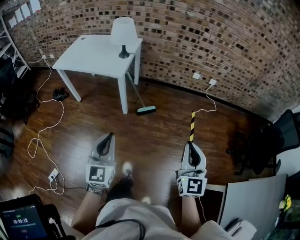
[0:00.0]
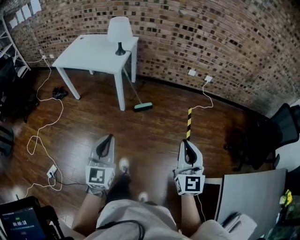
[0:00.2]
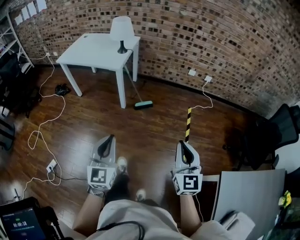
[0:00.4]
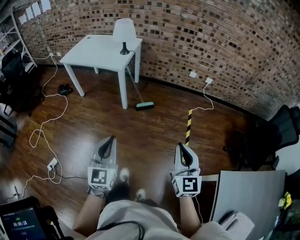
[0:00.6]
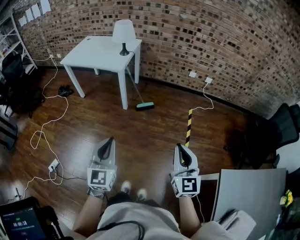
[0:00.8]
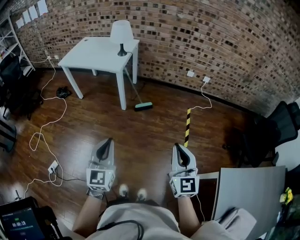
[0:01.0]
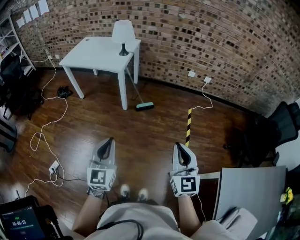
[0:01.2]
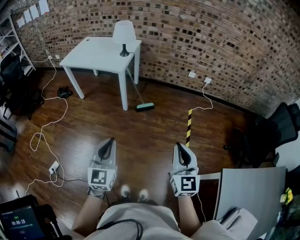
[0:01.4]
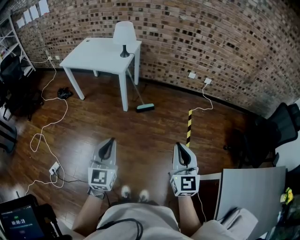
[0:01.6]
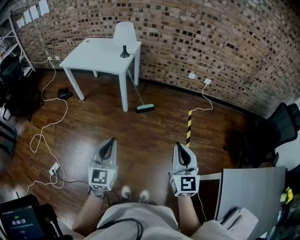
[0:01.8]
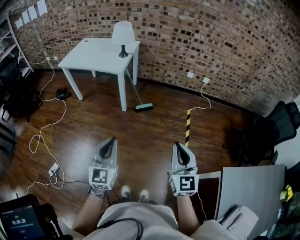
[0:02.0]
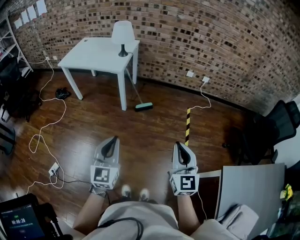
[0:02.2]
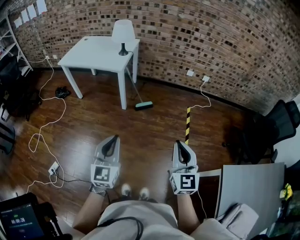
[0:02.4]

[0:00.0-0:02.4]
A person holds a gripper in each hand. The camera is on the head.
0.0 to 1.2 s: The two grippers go about 15 cm backward.
1.2 to 2.4 s: The grippers stay close to where they were, moving slightly.

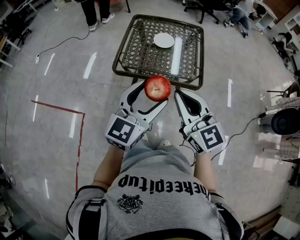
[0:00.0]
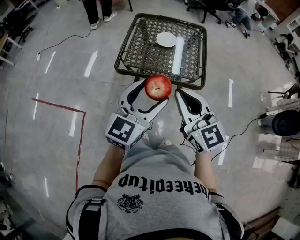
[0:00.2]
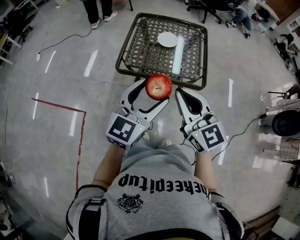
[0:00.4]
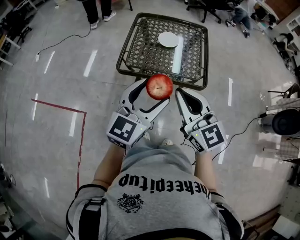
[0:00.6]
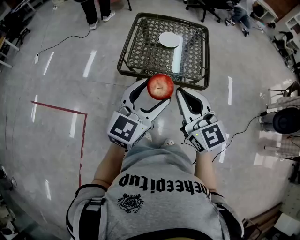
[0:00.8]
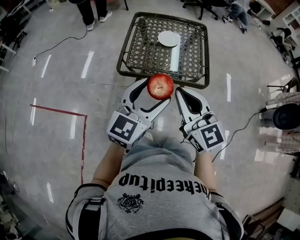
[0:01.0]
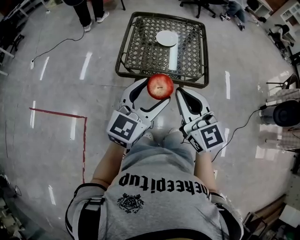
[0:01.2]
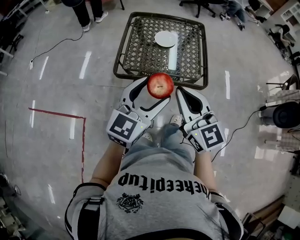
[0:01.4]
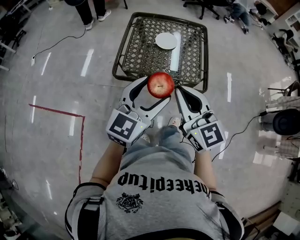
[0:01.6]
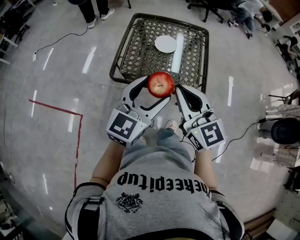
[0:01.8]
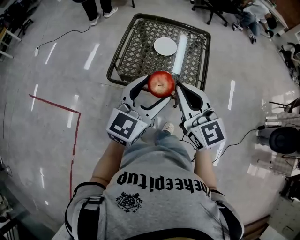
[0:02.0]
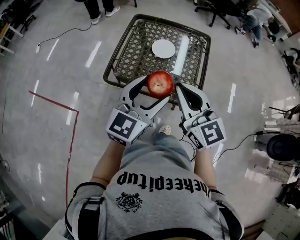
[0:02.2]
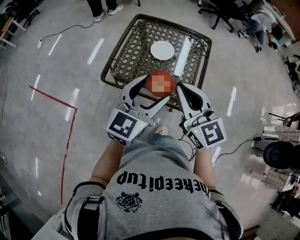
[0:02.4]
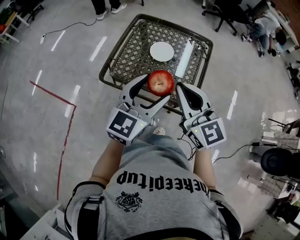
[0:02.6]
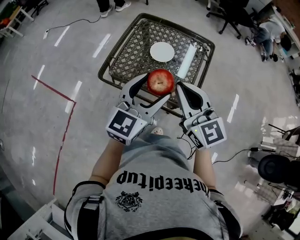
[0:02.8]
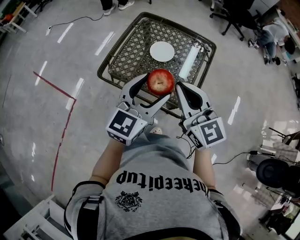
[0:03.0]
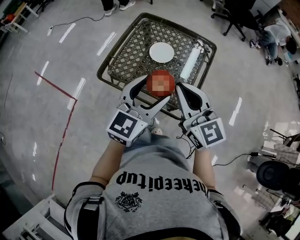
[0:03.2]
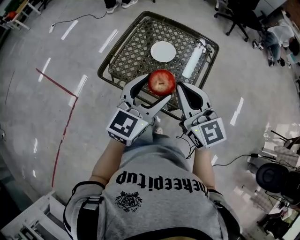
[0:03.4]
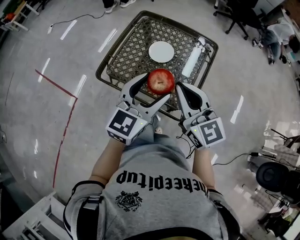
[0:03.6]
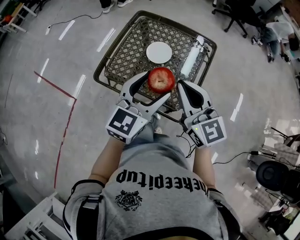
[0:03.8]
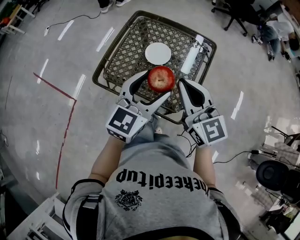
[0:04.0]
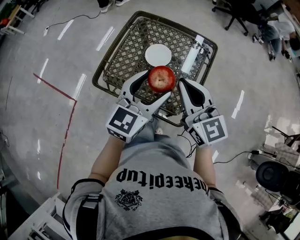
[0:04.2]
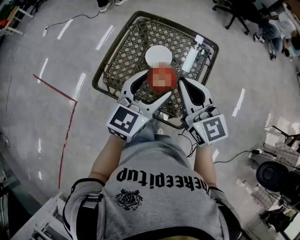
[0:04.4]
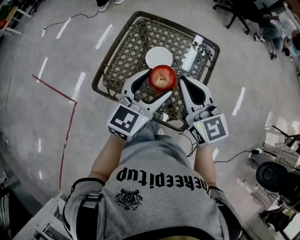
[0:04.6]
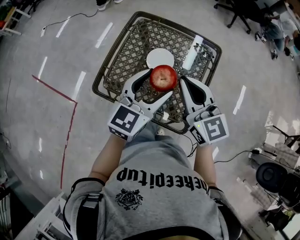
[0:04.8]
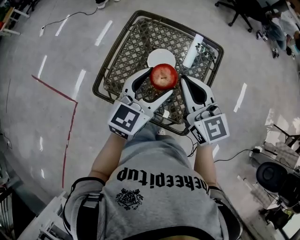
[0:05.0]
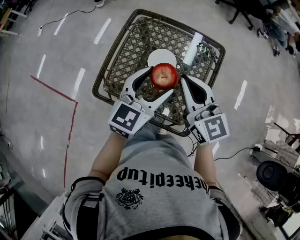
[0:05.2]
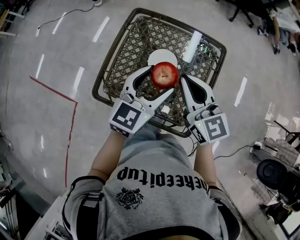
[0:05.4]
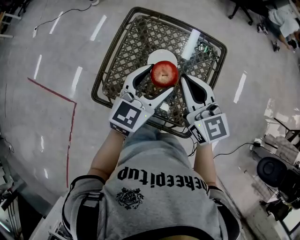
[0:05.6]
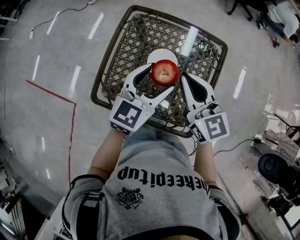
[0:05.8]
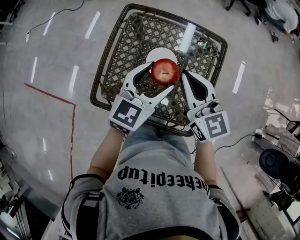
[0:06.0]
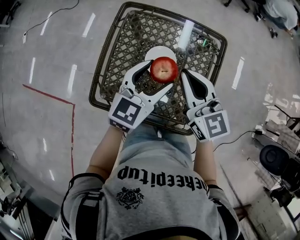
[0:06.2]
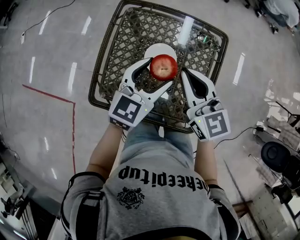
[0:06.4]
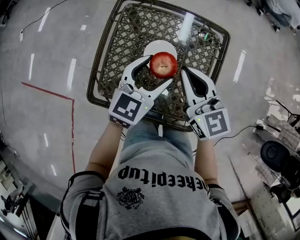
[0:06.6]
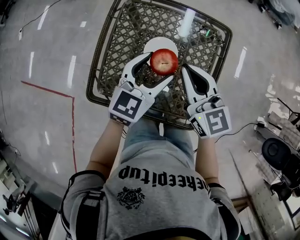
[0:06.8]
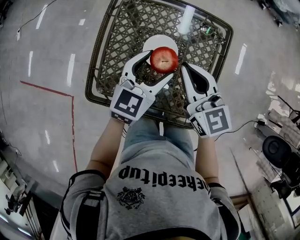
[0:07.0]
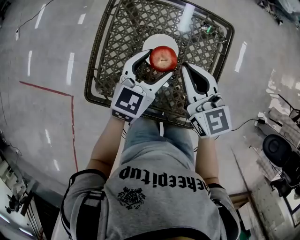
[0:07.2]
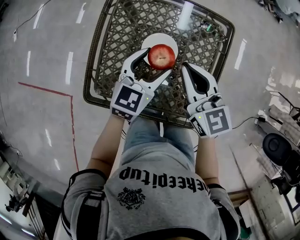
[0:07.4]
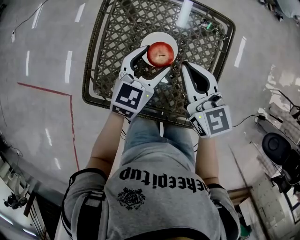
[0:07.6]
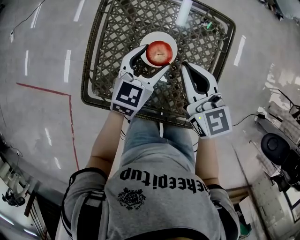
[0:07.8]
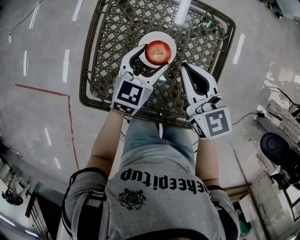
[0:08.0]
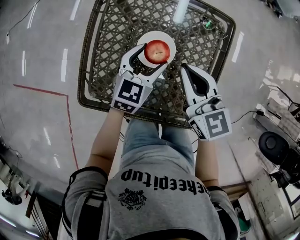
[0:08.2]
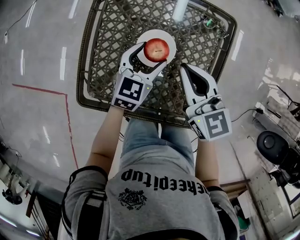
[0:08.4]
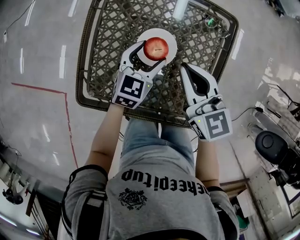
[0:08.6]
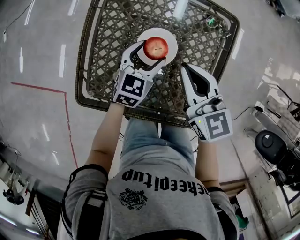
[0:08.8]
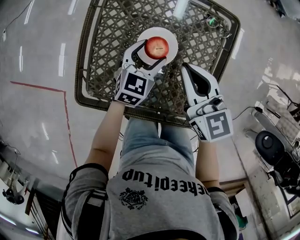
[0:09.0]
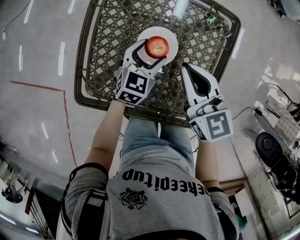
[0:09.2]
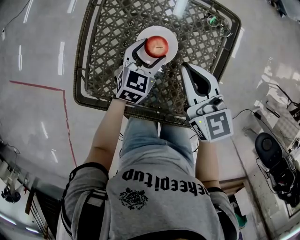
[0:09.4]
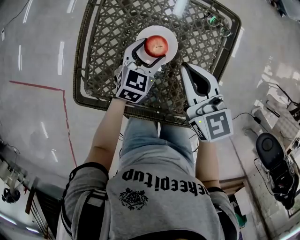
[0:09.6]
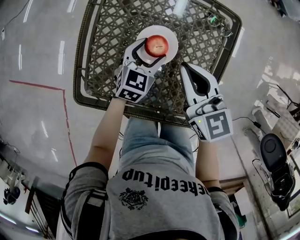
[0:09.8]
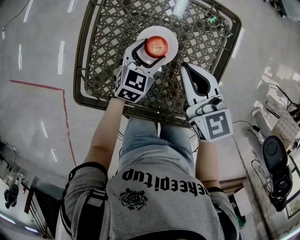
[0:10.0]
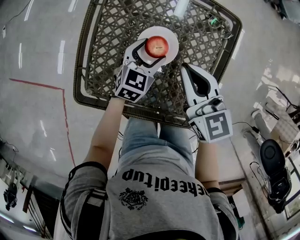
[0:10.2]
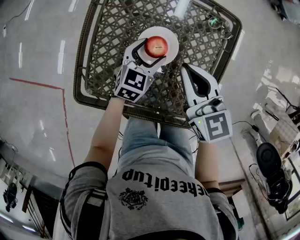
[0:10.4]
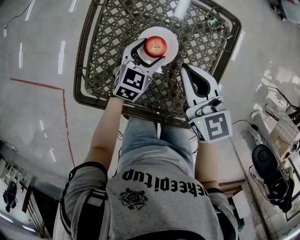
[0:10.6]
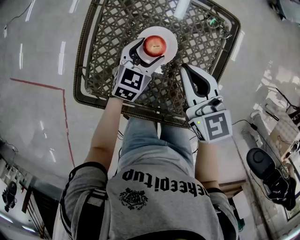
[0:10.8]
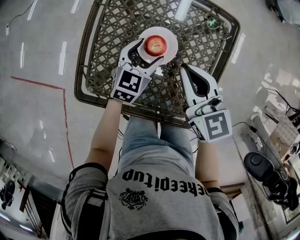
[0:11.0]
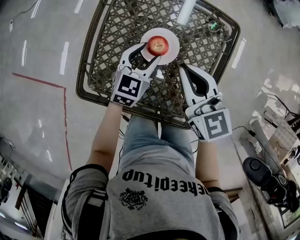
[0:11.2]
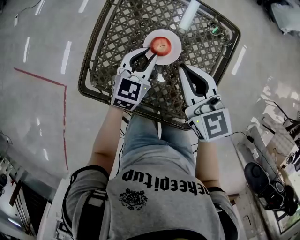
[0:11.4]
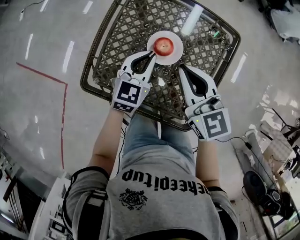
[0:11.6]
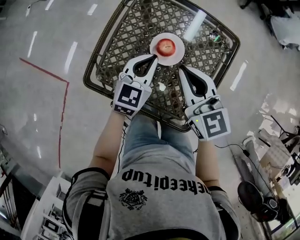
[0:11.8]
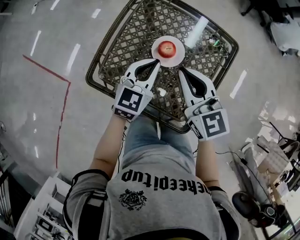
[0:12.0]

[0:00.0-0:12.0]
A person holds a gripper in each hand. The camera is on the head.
0.0 to 1.6 s: The grippers both shift forward by some 5 cm.
1.6 to 3.0 s: The left gripper is displaced to the right and forward by roughly 20 cm; the right gripper moves forward and to the right, some 20 cm.
3.0 to 4.4 s: The two grippers go about 10 cm forward.
4.4 to 6.0 s: The grippers both shift forward and downward by approximately 15 cm.
6.0 to 7.6 s: Both grippers travel together downward, about 10 cm.
7.6 to 9.0 s: The left gripper goes some 10 cm downward.
9.0 to 10.4 s: The grippers stay close to where they were, moving slightly.
10.4 to 12.0 s: The right gripper goes some 10 cm upward. The left gripper travels upward and backward by approximately 15 cm, and closes up.

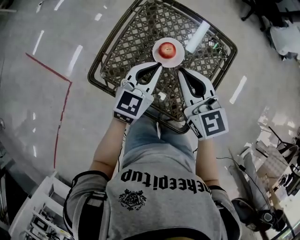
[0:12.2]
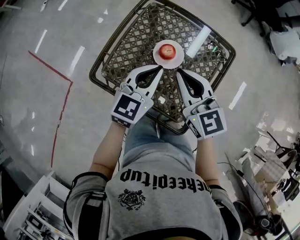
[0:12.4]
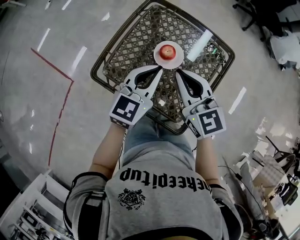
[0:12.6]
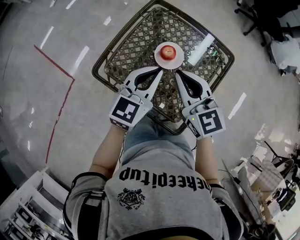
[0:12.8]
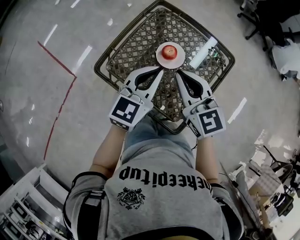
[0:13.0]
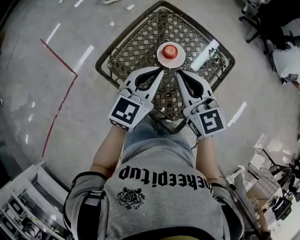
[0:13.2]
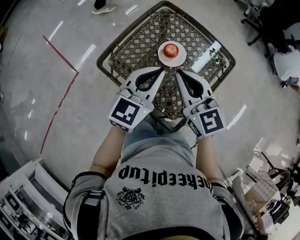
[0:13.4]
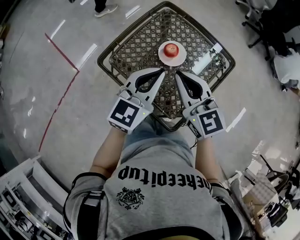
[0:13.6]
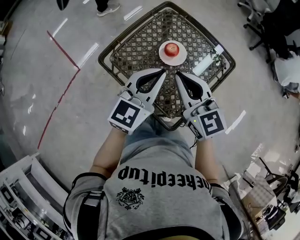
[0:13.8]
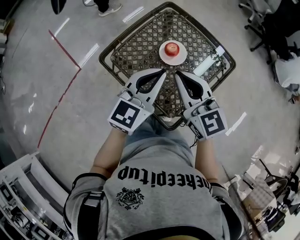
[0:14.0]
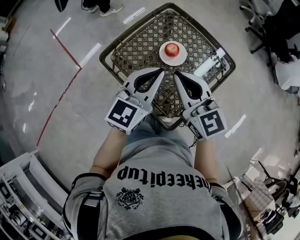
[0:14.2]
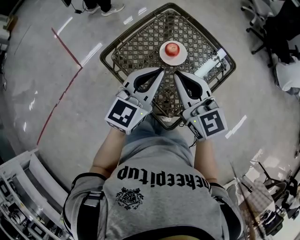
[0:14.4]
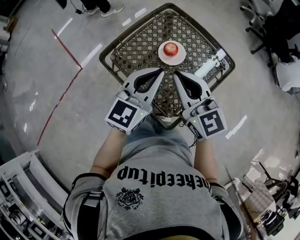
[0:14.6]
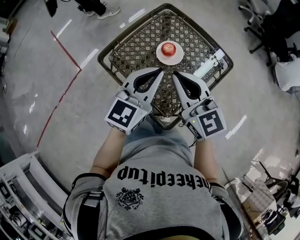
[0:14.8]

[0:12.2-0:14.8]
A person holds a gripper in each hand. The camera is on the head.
12.2 to 13.4 s: The right gripper travels backward by some 5 cm. Meanwhile the left gripper heads upward and backward, covering approximately 15 cm.
13.4 to 14.8 s: There are only small adjustments of the grippers.

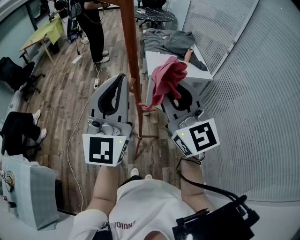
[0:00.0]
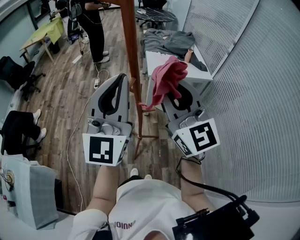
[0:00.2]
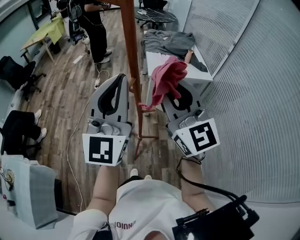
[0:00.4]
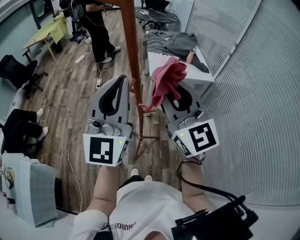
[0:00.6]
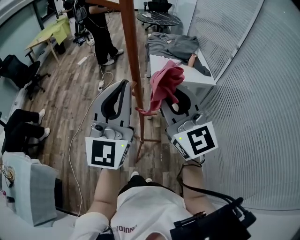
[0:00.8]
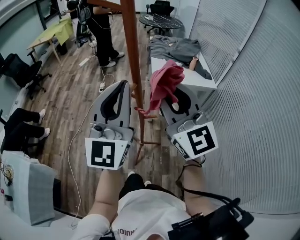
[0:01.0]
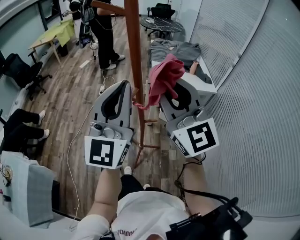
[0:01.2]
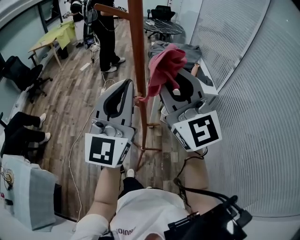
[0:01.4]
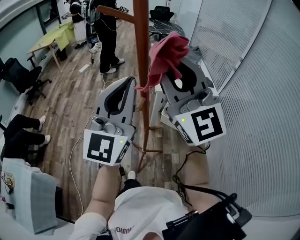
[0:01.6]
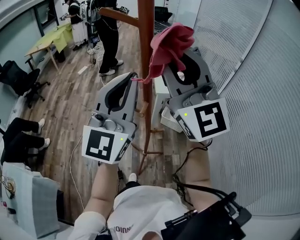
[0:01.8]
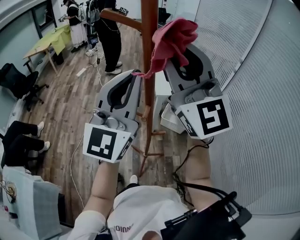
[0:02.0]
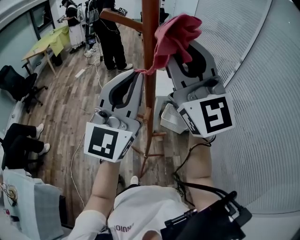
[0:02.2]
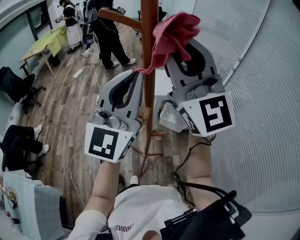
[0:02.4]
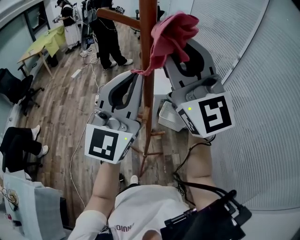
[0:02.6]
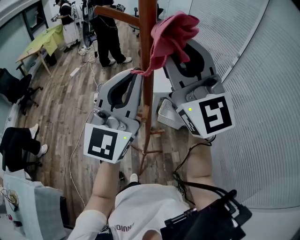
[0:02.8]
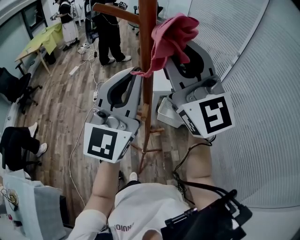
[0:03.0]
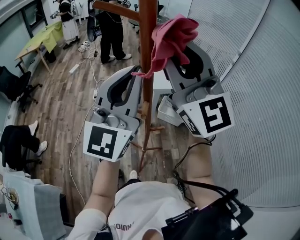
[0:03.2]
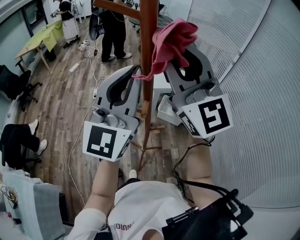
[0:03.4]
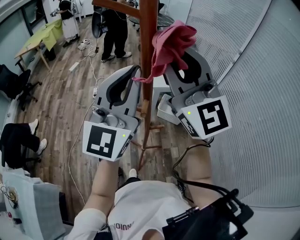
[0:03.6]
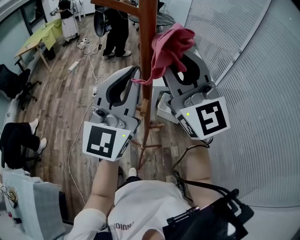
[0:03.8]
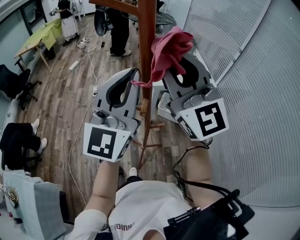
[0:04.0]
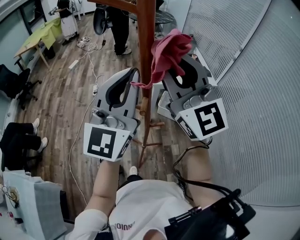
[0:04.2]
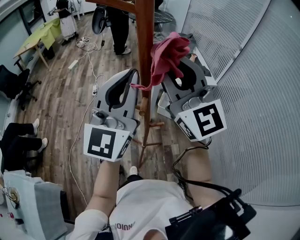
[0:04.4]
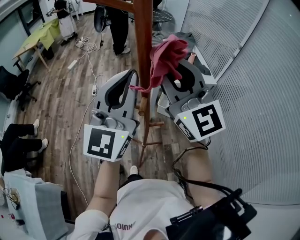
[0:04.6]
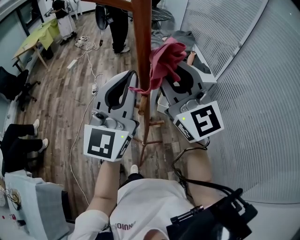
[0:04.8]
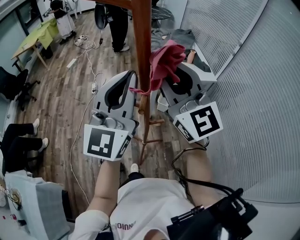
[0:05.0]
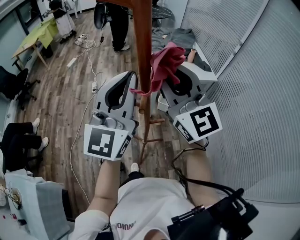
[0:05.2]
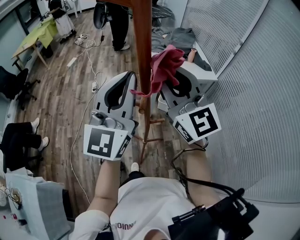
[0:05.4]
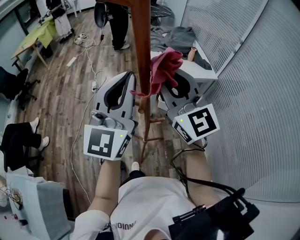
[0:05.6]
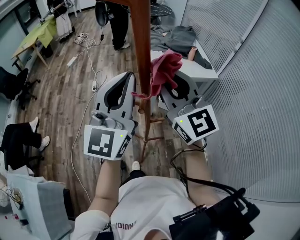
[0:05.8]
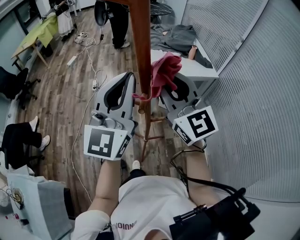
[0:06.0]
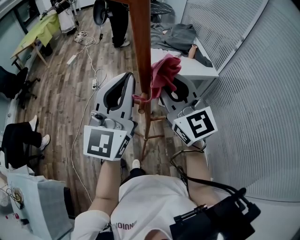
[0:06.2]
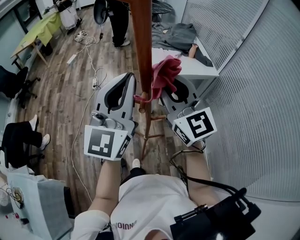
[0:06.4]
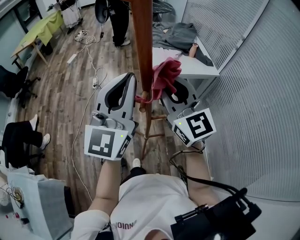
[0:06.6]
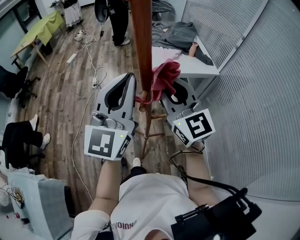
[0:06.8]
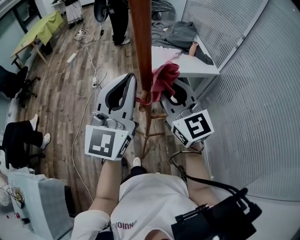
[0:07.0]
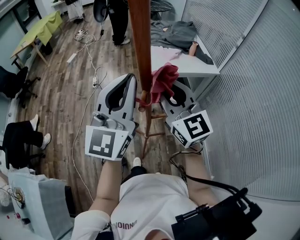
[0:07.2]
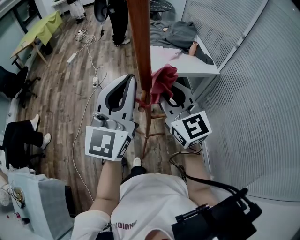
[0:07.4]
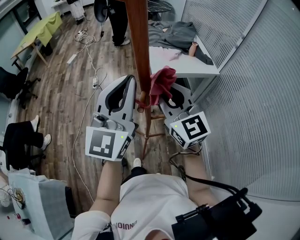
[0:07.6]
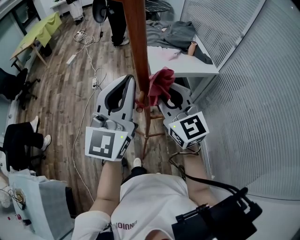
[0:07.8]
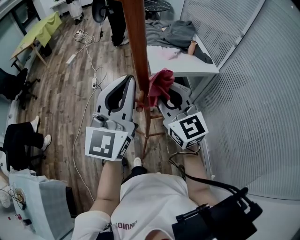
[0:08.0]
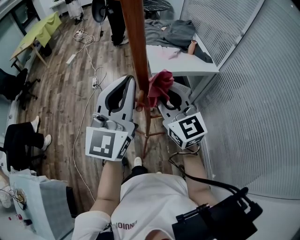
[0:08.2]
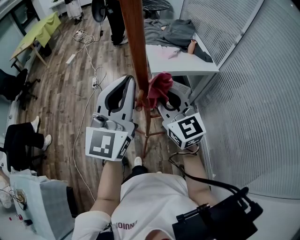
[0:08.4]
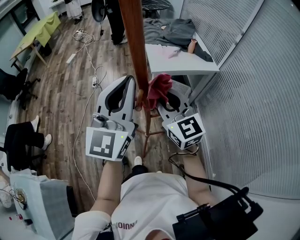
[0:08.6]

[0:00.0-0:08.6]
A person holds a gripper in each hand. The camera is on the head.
0.0 to 1.4 s: The right gripper is displaced upward by about 5 cm.
1.4 to 2.8 s: The right gripper shifts approximately 10 cm upward. Meanwhile the left gripper changes place by roughly 5 cm.
2.8 to 4.4 s: The right gripper shifts about 10 cm downward.
4.4 to 5.8 s: The right gripper heads downward, covering roughly 10 cm.
5.8 to 7.2 s: The right gripper shifts about 5 cm downward.
7.2 to 8.6 s: The right gripper heads downward, covering approximately 5 cm.
